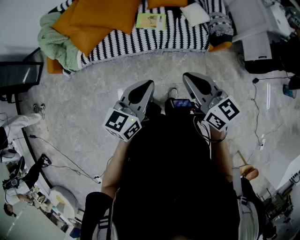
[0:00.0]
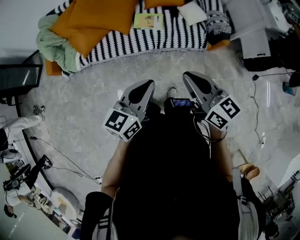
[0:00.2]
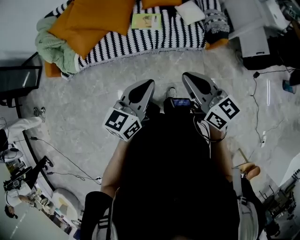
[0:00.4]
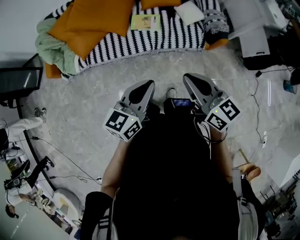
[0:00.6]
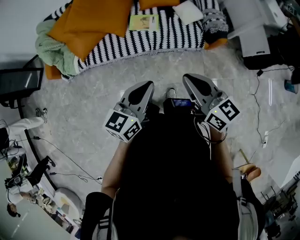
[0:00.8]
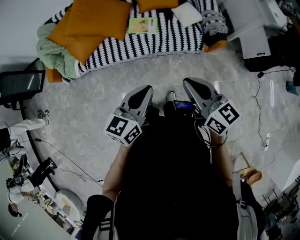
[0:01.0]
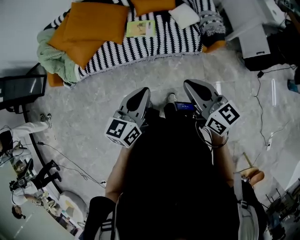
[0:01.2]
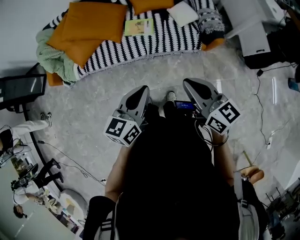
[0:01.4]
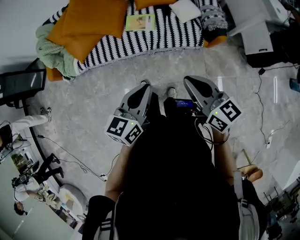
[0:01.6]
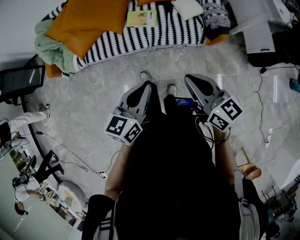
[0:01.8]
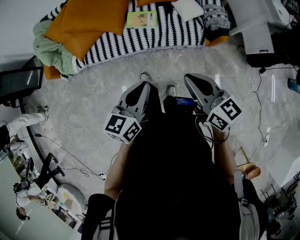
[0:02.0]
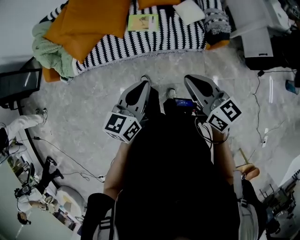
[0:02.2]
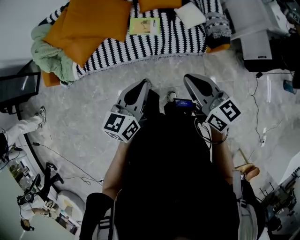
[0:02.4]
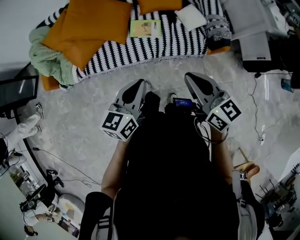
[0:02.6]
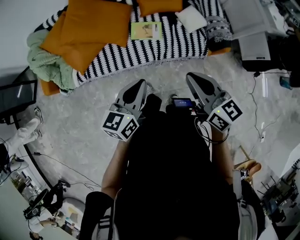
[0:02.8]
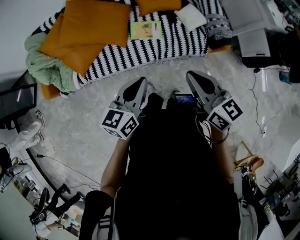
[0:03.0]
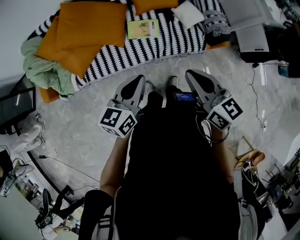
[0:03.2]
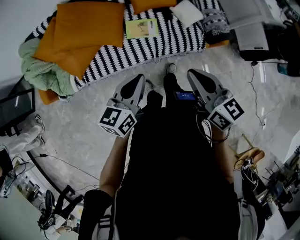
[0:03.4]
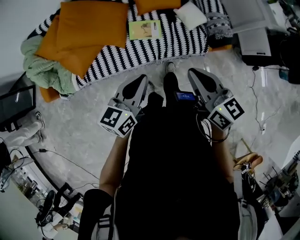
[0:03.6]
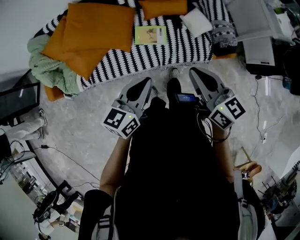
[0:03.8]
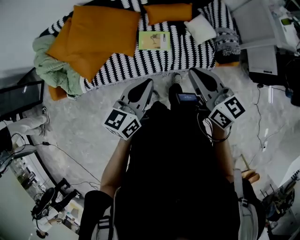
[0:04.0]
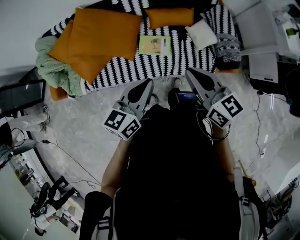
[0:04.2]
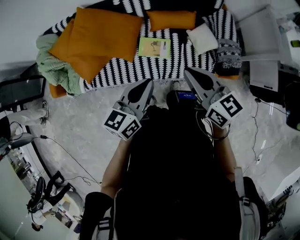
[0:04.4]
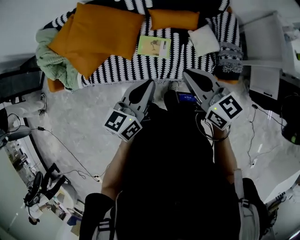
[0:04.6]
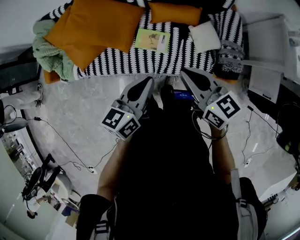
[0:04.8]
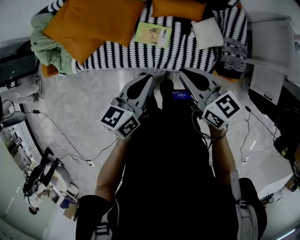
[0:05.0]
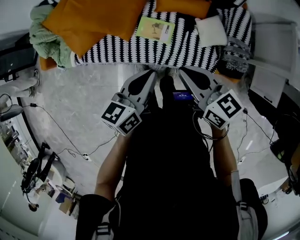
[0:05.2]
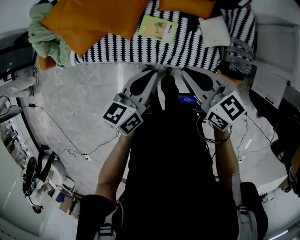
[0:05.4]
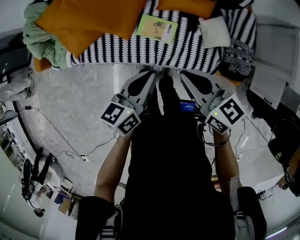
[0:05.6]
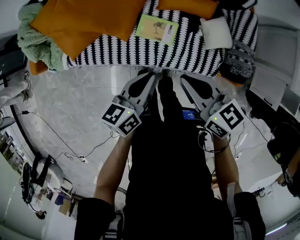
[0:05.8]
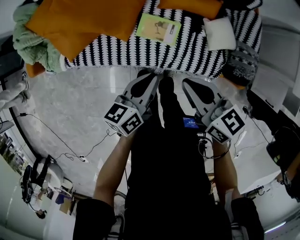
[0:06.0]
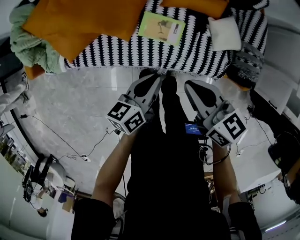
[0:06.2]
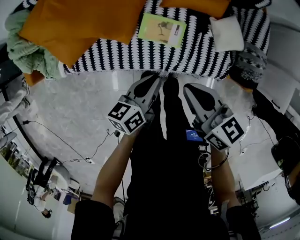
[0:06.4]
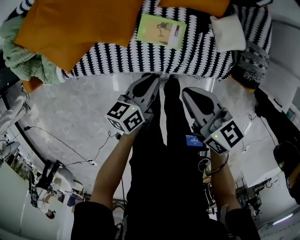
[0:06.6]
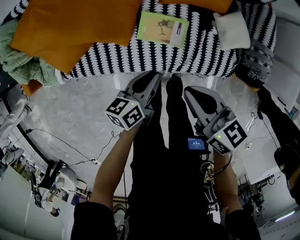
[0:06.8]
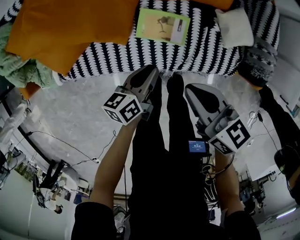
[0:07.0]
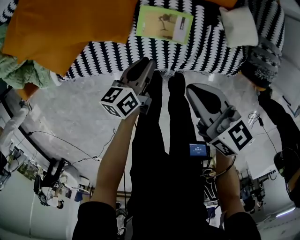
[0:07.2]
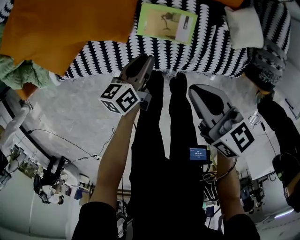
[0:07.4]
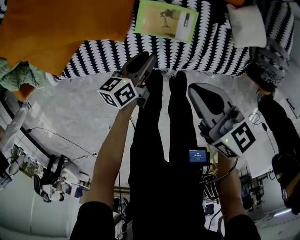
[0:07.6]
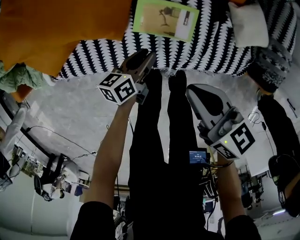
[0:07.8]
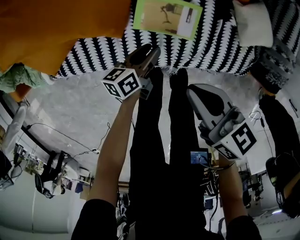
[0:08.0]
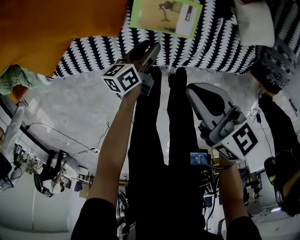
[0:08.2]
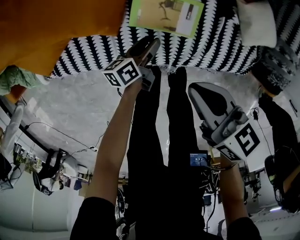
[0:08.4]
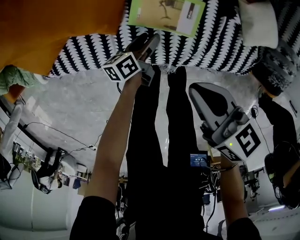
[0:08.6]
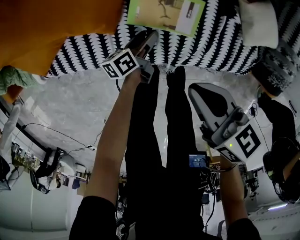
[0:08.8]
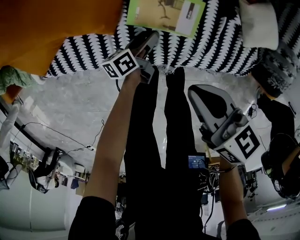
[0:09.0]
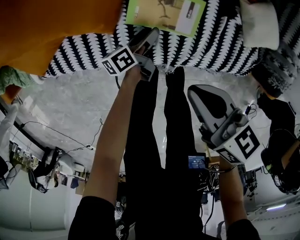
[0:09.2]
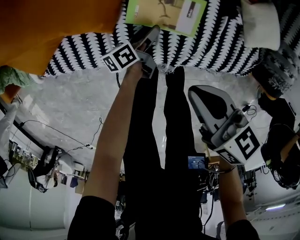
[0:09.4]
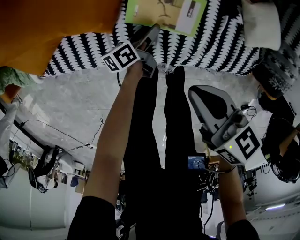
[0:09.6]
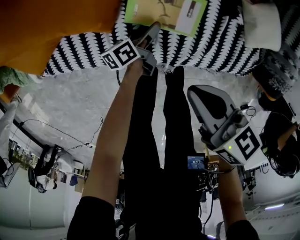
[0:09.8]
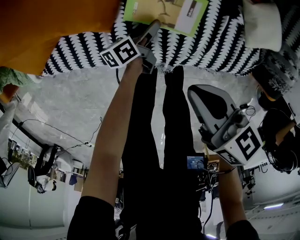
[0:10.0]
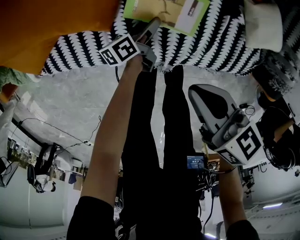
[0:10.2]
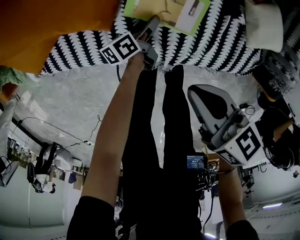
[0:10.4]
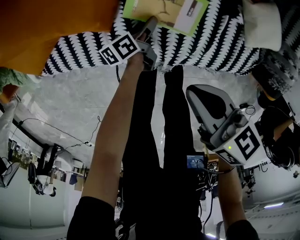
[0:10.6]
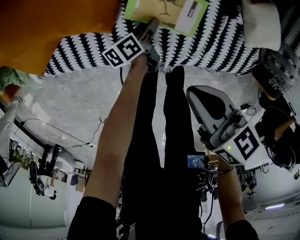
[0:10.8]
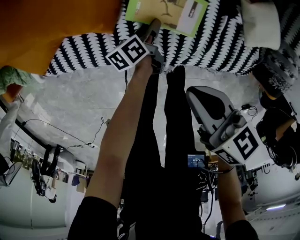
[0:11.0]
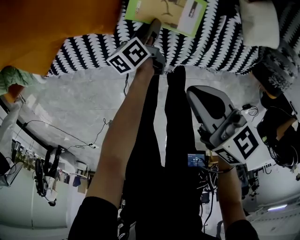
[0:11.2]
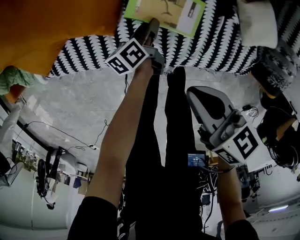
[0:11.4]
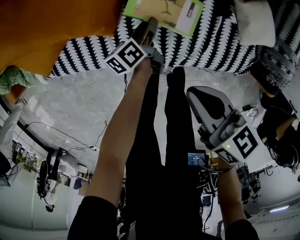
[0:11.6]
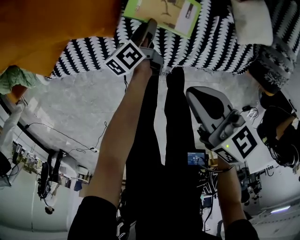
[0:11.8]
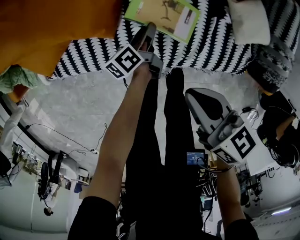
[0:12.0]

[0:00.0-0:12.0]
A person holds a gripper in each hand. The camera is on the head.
0:00.0 to 0:01.6: The two grippers go some 10 cm to the right.
0:01.6 to 0:03.0: Both grippers move to the left and forward, roughly 20 cm.
0:03.0 to 0:04.4: The left gripper travels forward and to the right by roughly 15 cm. Meanwhile the right gripper goes approximately 20 cm forward.
0:04.4 to 0:06.0: The left gripper heads downward, covering roughly 20 cm, and turns by approximately 20 degrees. Meanwhile the right gripper shifts approximately 15 cm downward and forward.
0:06.0 to 0:07.6: The right gripper is displaced downward by approximately 20 cm. The left gripper heads downward, covering roughly 30 cm.
0:07.6 to 0:09.0: The left gripper travels downward by approximately 15 cm, and opens its fingers. The right gripper heads downward, covering some 5 cm.
0:09.0 to 0:10.4: The grippers make only small movements.
0:10.4 to 0:12.0: The right gripper changes place by approximately 5 cm. The left gripper heads upward, covering roughly 10 cm, and closes.

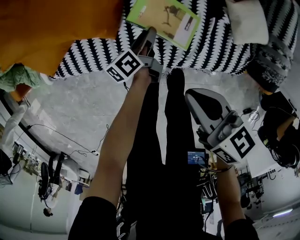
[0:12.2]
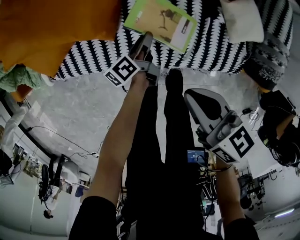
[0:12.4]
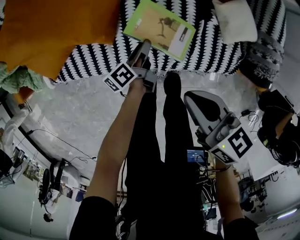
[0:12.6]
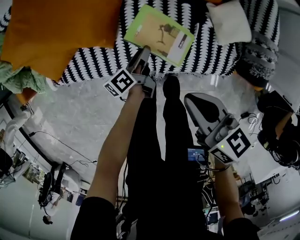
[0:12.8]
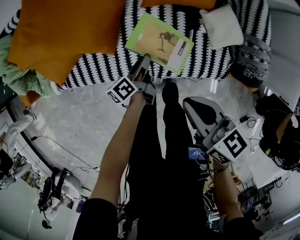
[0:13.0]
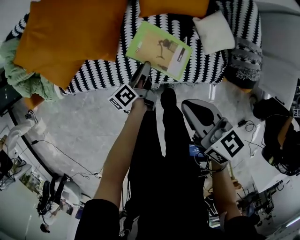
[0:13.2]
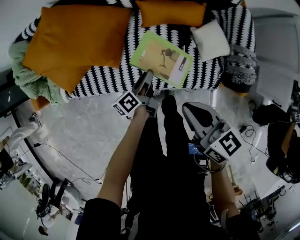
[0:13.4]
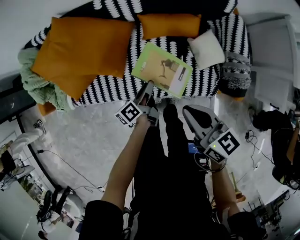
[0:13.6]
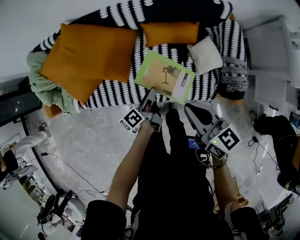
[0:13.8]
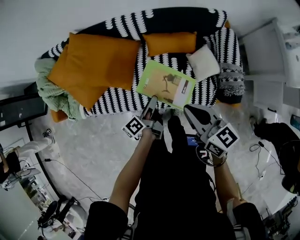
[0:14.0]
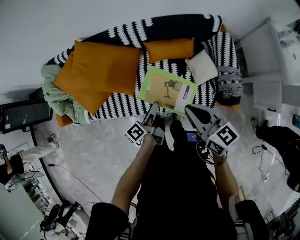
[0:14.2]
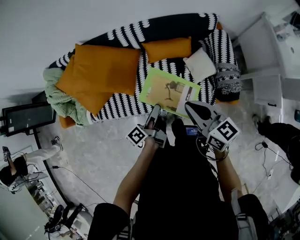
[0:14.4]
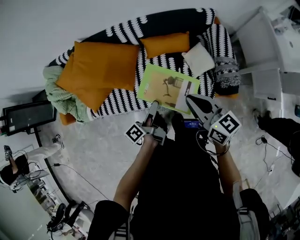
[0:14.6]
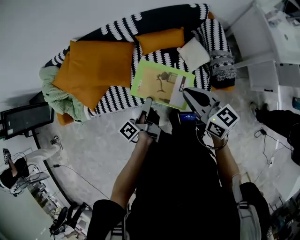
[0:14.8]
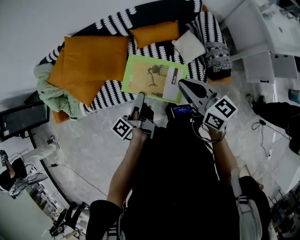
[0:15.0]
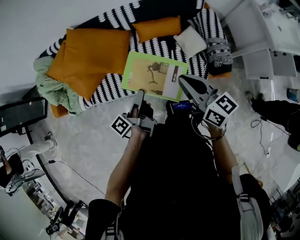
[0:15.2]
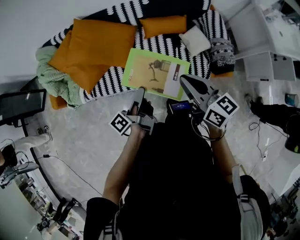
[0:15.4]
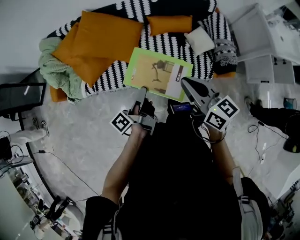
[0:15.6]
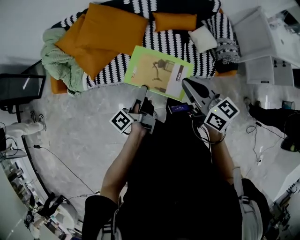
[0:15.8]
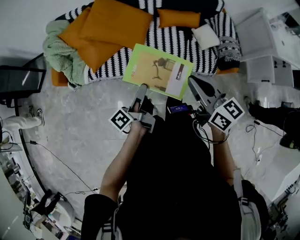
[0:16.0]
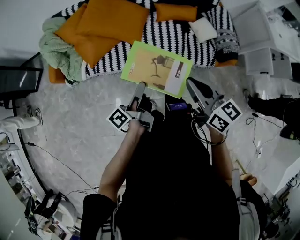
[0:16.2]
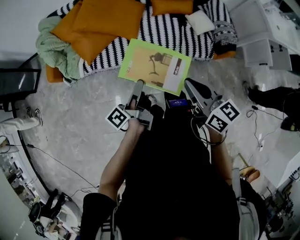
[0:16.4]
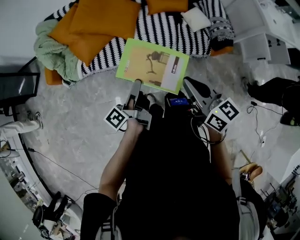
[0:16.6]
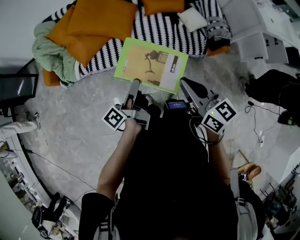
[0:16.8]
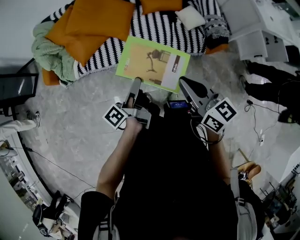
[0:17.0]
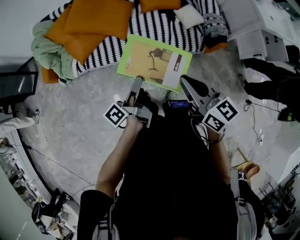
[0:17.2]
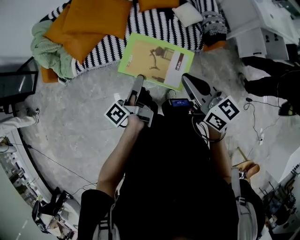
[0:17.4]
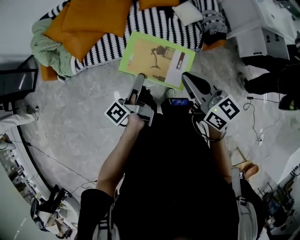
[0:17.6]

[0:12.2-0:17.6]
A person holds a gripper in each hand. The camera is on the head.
0:12.2 to 0:13.6: The left gripper shifts approximately 20 cm upward. The right gripper is displaced upward and to the right by some 20 cm.
0:13.6 to 0:15.0: The left gripper travels upward and backward by approximately 20 cm, and turns by roughly 20 degrees. The right gripper heads upward, covering approximately 10 cm.
0:15.0 to 0:16.2: The grippers both shift to the left and backward by approximately 25 cm.
0:16.2 to 0:17.6: Both grippers travel together backward and to the right, approximately 15 cm.

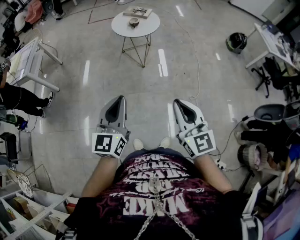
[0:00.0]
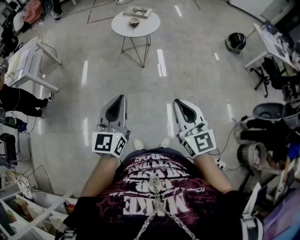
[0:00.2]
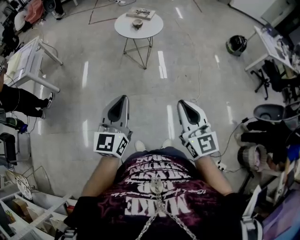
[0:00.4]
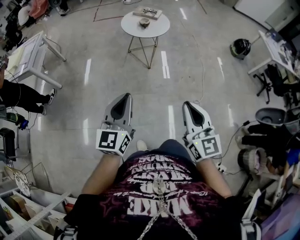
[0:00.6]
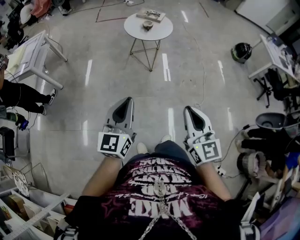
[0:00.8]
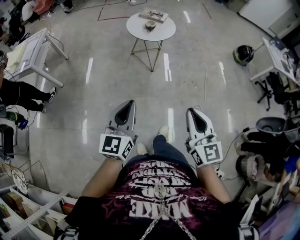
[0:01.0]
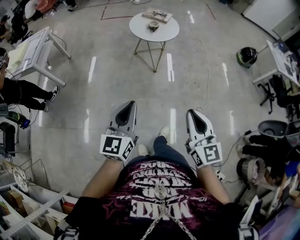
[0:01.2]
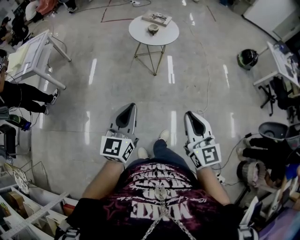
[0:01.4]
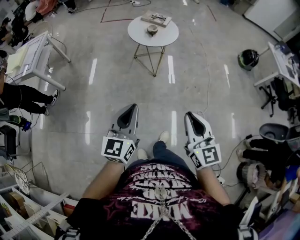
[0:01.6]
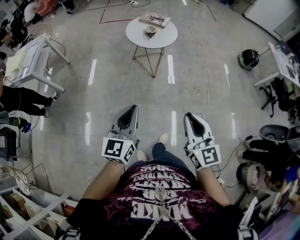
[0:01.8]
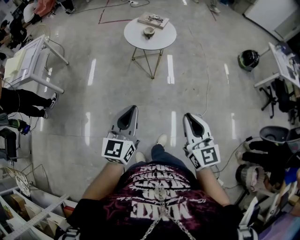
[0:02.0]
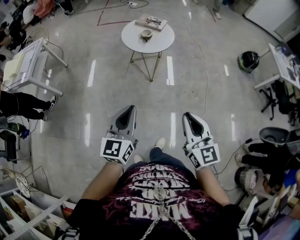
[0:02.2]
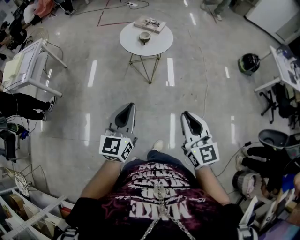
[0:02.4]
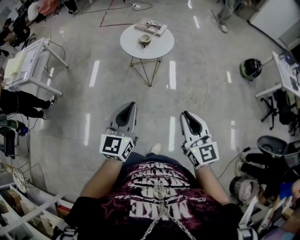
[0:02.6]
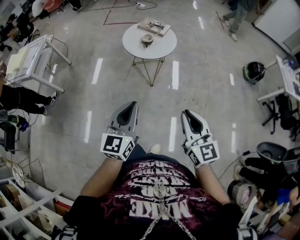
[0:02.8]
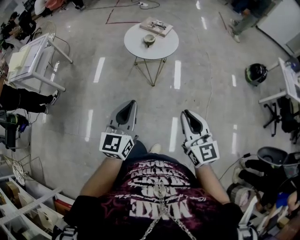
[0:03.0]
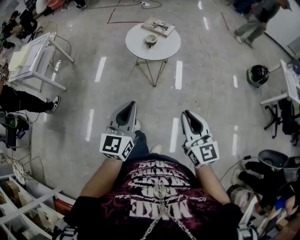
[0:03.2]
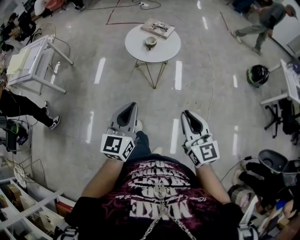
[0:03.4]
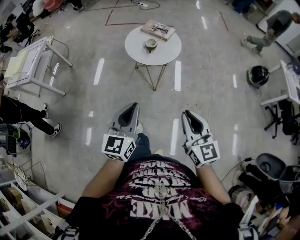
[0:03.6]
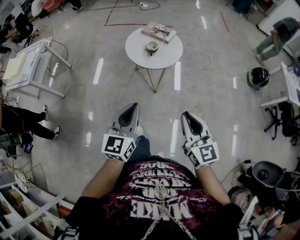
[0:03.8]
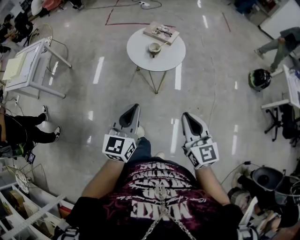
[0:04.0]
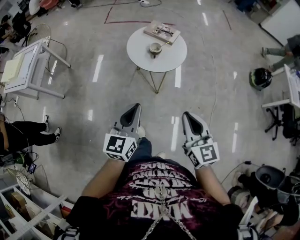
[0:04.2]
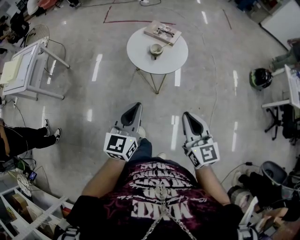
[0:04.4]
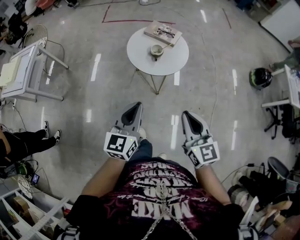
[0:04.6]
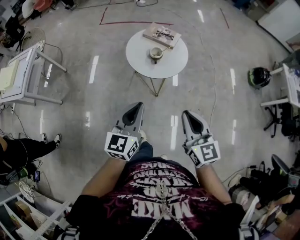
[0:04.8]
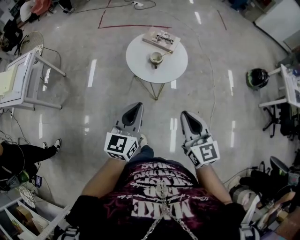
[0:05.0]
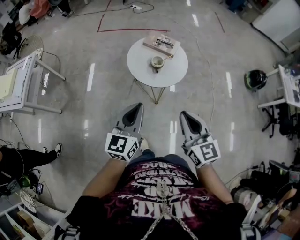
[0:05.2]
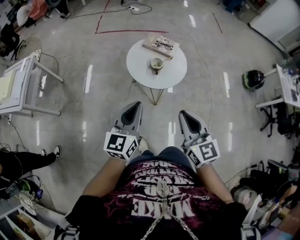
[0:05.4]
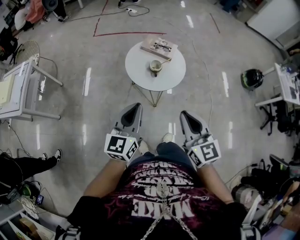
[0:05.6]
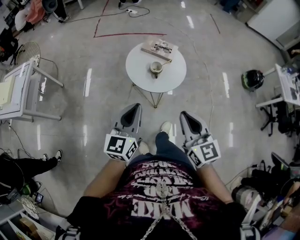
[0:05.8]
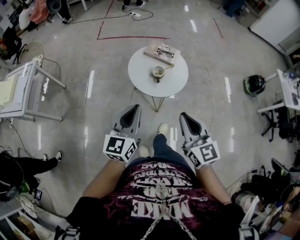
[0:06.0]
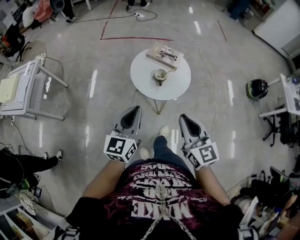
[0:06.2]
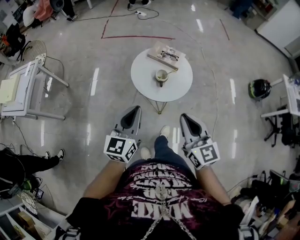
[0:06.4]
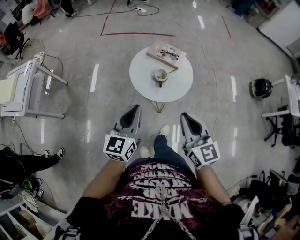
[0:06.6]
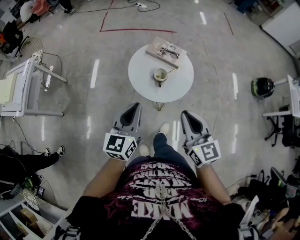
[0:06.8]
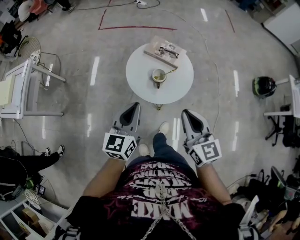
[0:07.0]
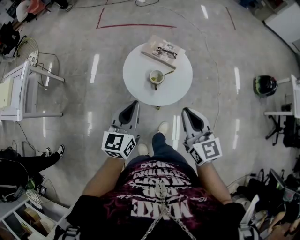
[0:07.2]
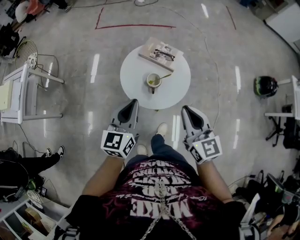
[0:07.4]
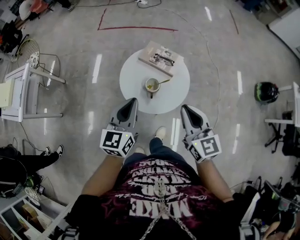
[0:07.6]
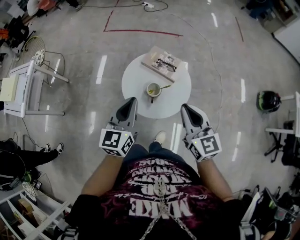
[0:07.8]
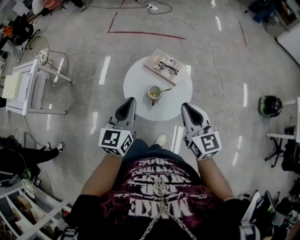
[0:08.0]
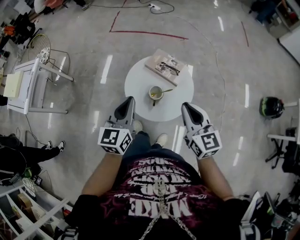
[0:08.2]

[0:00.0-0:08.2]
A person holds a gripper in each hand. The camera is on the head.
0:00.0 to 0:01.6: Both grippers travel together forward, about 10 cm.
0:01.6 to 0:03.2: The grippers both shift forward and to the right by approximately 20 cm.
0:03.2 to 0:05.0: The left gripper travels forward by approximately 25 cm; the right gripper shifts approximately 25 cm forward and to the left.
0:05.0 to 0:06.6: Both grippers move forward, approximately 10 cm.
0:06.6 to 0:08.2: Both grippers travel together forward and to the right, about 20 cm.
